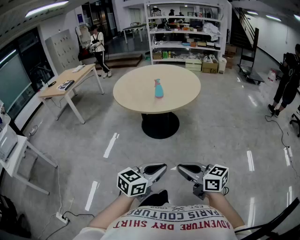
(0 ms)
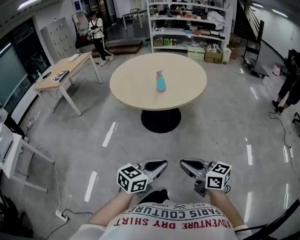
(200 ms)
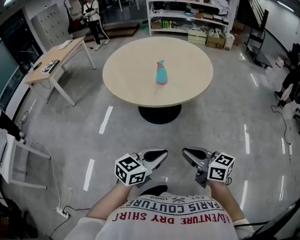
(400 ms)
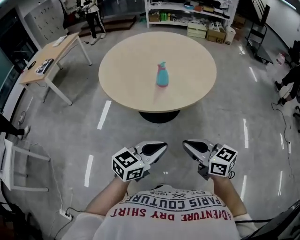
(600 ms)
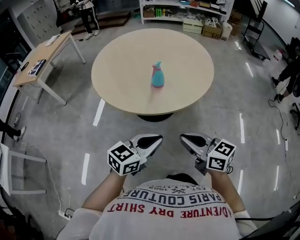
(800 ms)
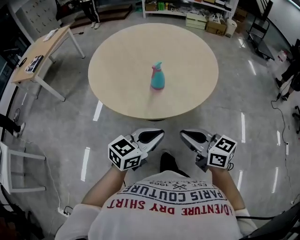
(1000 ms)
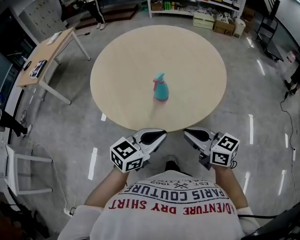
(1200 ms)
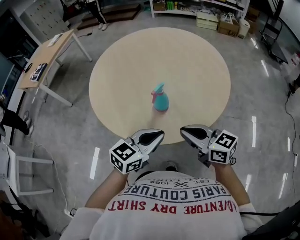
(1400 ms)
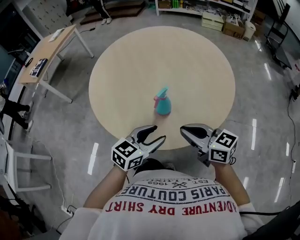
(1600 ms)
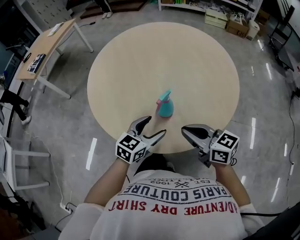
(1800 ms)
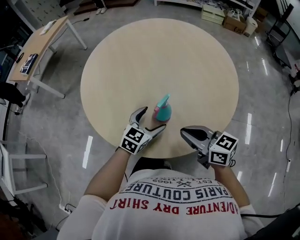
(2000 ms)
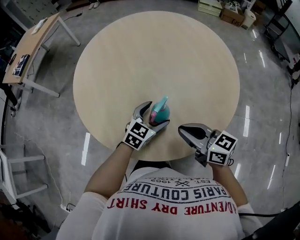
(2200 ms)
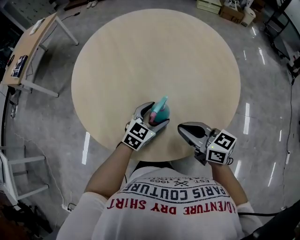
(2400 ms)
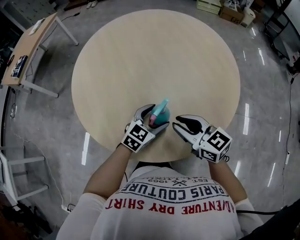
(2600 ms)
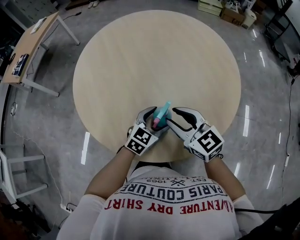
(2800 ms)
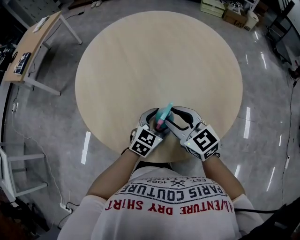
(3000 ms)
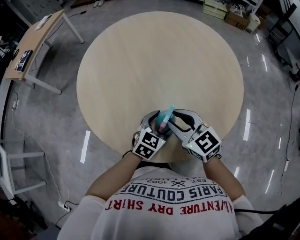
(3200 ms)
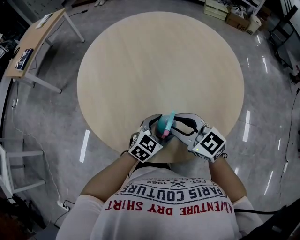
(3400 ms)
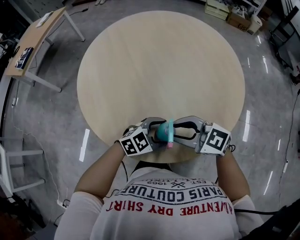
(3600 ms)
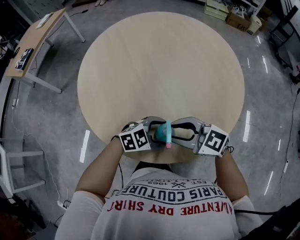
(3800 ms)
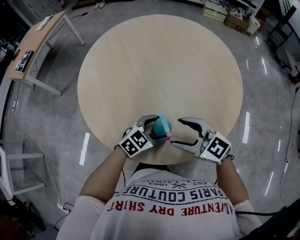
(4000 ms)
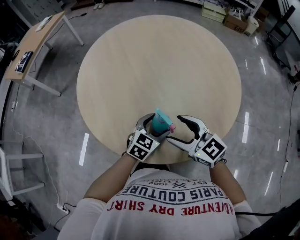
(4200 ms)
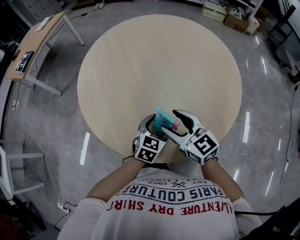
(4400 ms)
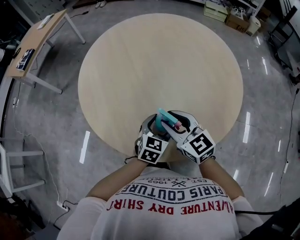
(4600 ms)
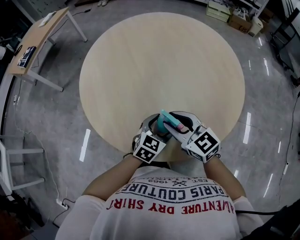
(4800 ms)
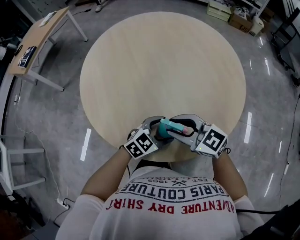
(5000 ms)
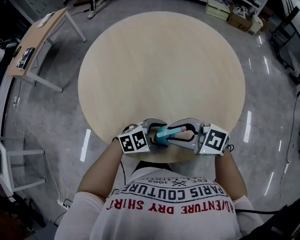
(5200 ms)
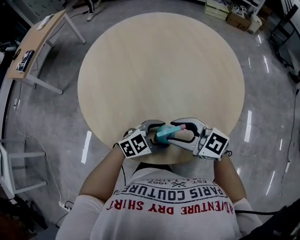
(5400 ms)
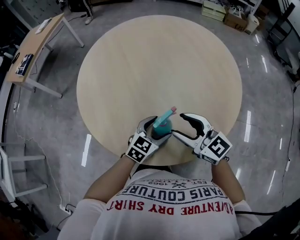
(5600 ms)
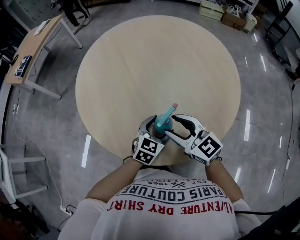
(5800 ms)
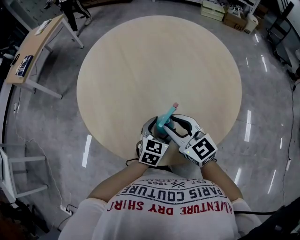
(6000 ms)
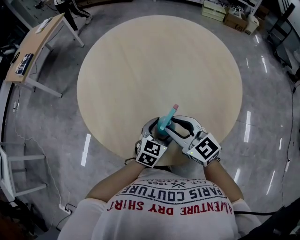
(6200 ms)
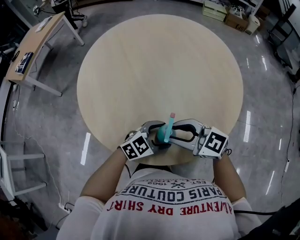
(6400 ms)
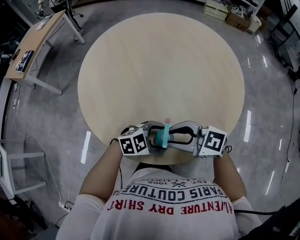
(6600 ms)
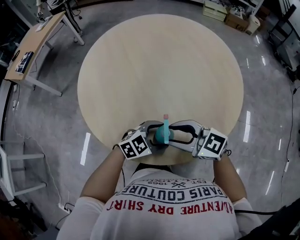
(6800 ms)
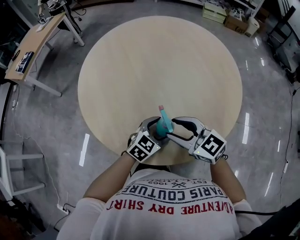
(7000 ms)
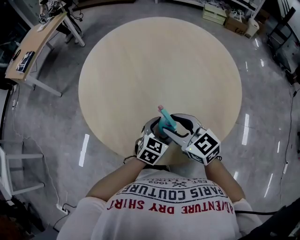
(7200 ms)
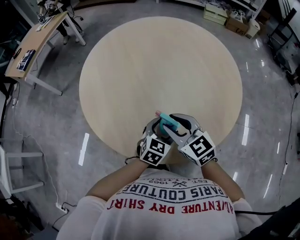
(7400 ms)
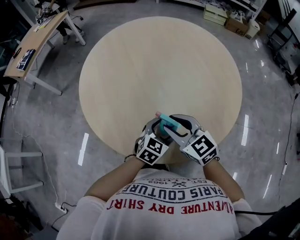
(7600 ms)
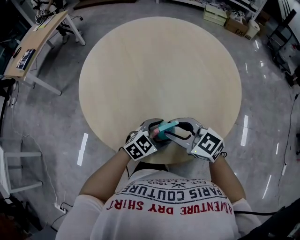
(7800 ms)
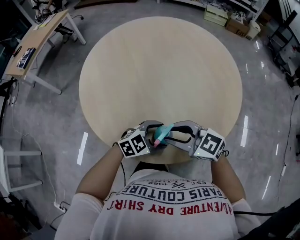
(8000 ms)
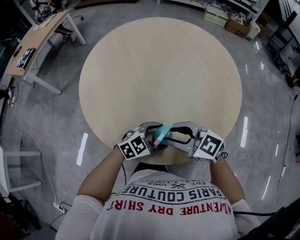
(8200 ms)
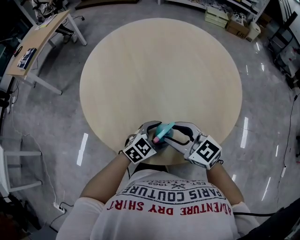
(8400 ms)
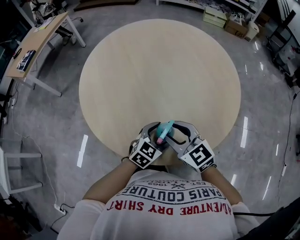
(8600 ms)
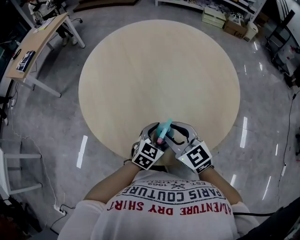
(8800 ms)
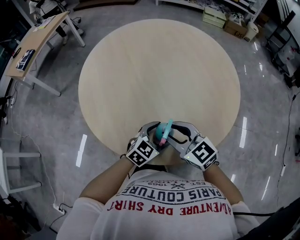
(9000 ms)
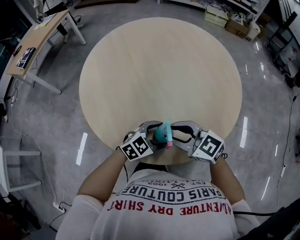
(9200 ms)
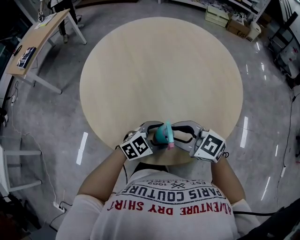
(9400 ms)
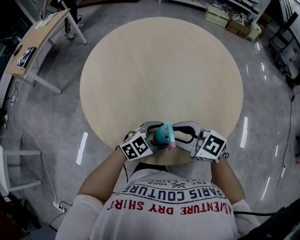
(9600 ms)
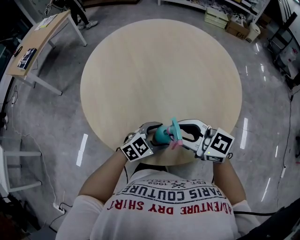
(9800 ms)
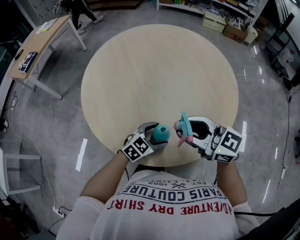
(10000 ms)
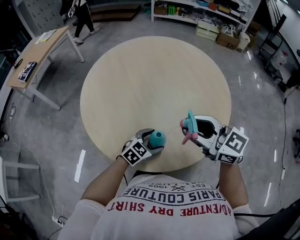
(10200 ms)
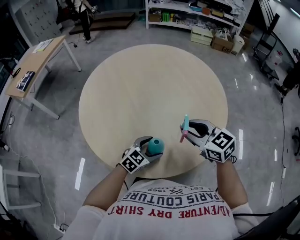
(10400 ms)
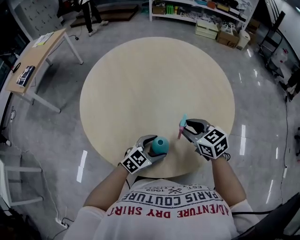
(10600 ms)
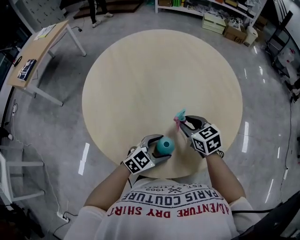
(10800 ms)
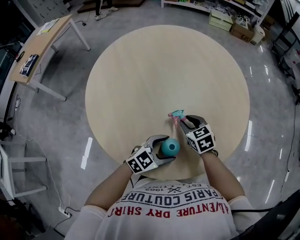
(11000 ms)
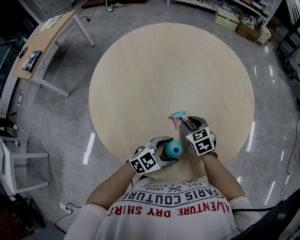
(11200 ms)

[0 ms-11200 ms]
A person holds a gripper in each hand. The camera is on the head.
0 ms to 1600 ms: The pair of grippers is taken forward, about 70 cm. The left gripper opens up.
1600 ms to 3200 ms: The right gripper shifts about 15 cm forward and to the left, rotates approximately 20 degrees, and opens its fingers, while the left gripper goes about 15 cm forward and downward, and opens its fingers.
3200 ms to 4800 ms: The right gripper opens, then closes once more.
4800 ms to 6400 ms: The right gripper changes its angle by about 20 degrees. The left gripper swivels approximately 30 degrees.
9600 ms to 11200 ms: The right gripper changes place by some 20 cm, and turns by some 50 degrees.

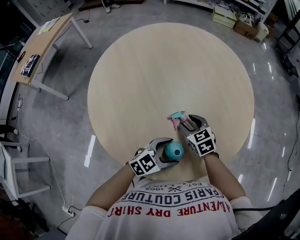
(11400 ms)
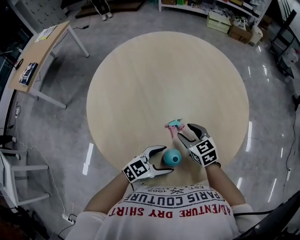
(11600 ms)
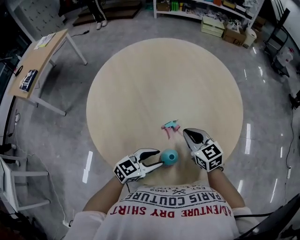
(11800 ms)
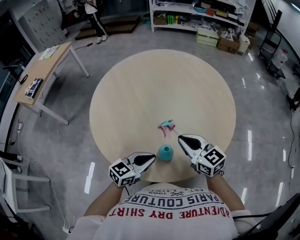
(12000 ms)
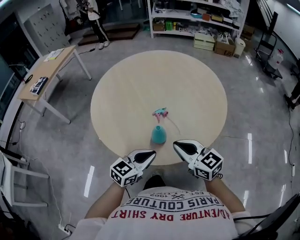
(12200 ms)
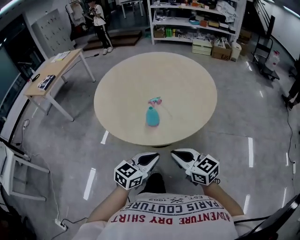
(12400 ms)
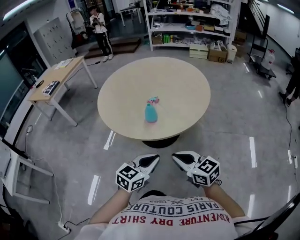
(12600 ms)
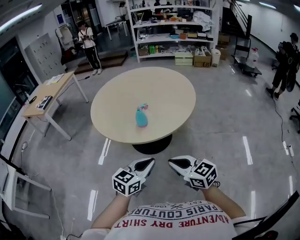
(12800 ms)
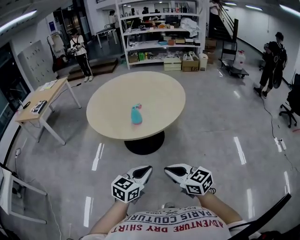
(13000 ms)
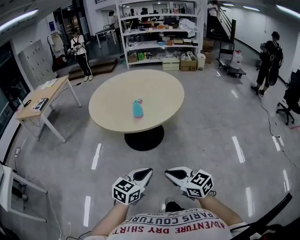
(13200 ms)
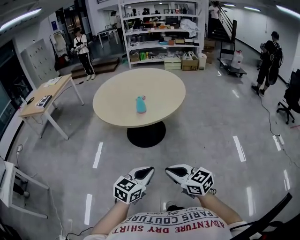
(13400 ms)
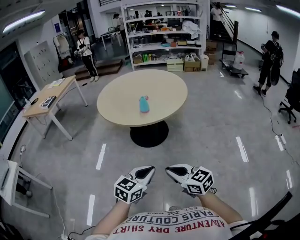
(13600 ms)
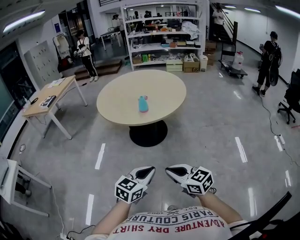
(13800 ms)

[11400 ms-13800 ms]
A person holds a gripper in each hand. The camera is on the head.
11400 ms to 12600 ms: The left gripper heads backward and upward, covering approximately 35 cm, changes its angle by about 20 degrees, and closes up. Meanwhile the right gripper is displaced backward by about 50 cm, turns by some 30 degrees, and closes its fingers.
12600 ms to 13800 ms: The grippers both shift backward by approximately 30 cm.

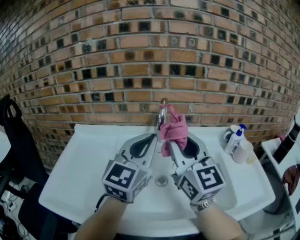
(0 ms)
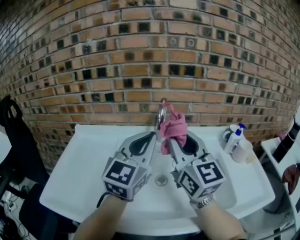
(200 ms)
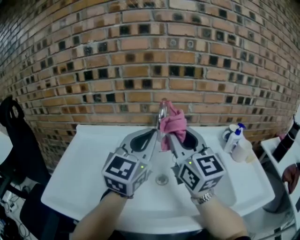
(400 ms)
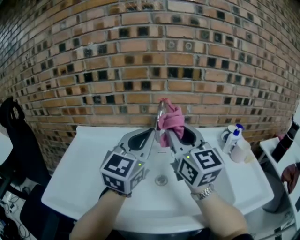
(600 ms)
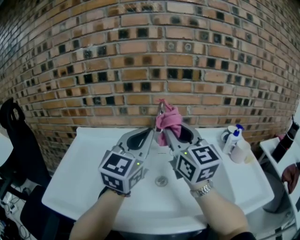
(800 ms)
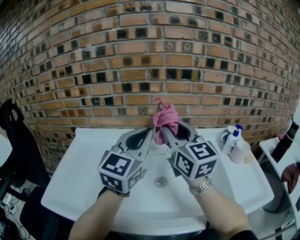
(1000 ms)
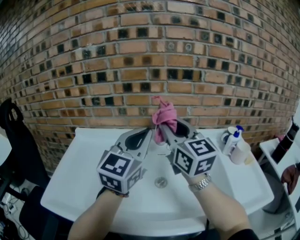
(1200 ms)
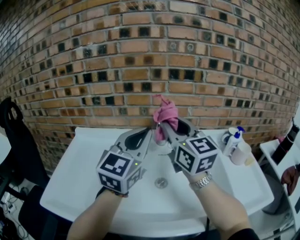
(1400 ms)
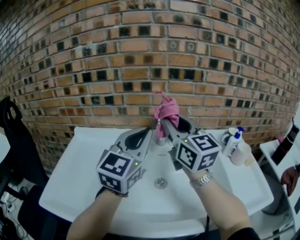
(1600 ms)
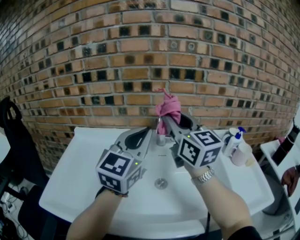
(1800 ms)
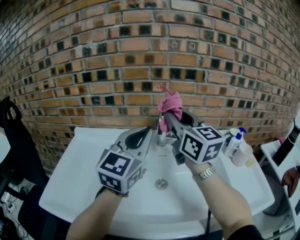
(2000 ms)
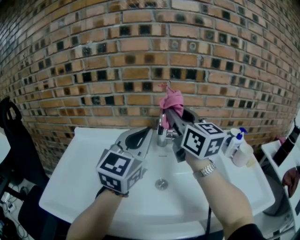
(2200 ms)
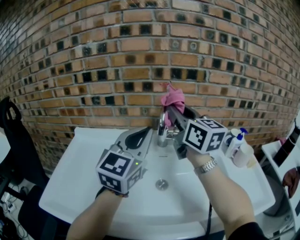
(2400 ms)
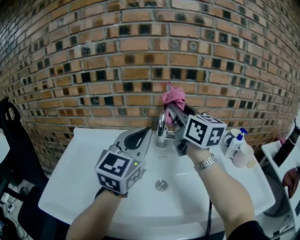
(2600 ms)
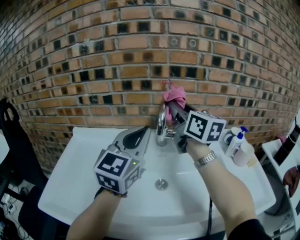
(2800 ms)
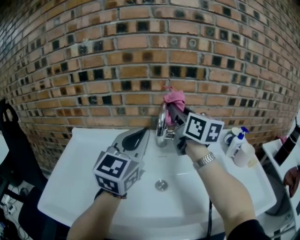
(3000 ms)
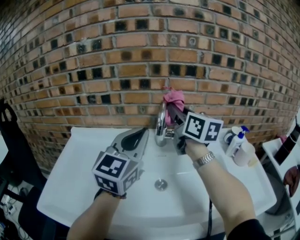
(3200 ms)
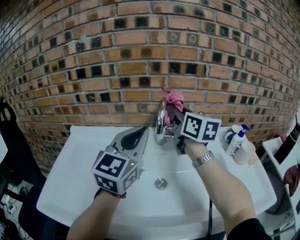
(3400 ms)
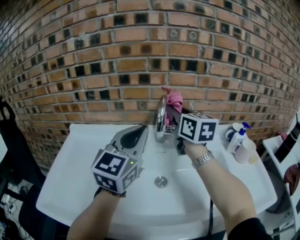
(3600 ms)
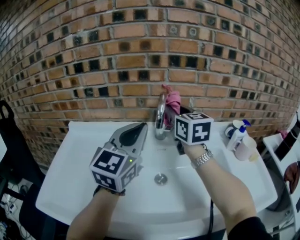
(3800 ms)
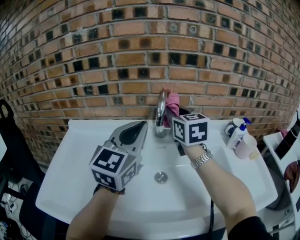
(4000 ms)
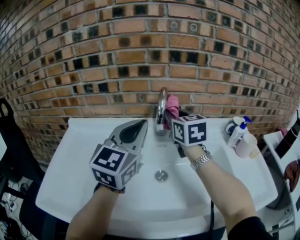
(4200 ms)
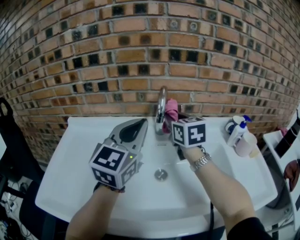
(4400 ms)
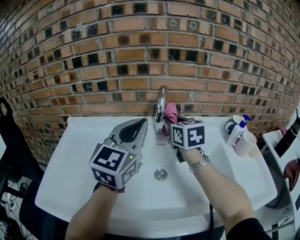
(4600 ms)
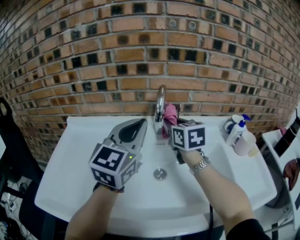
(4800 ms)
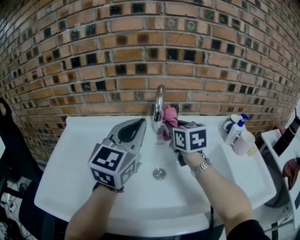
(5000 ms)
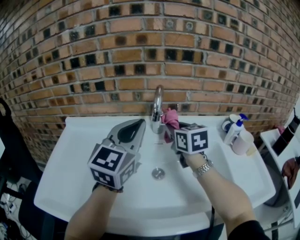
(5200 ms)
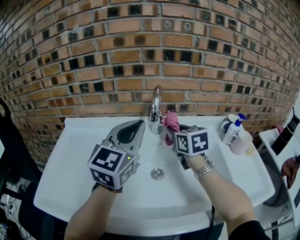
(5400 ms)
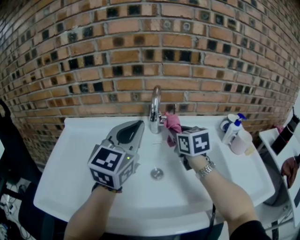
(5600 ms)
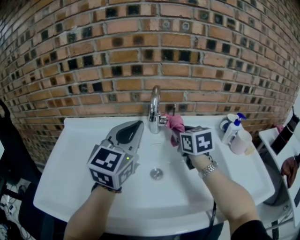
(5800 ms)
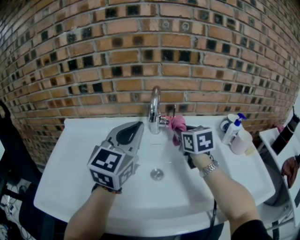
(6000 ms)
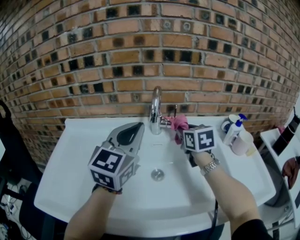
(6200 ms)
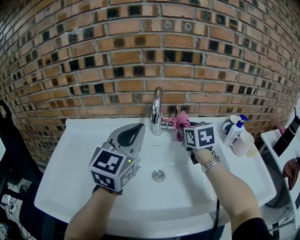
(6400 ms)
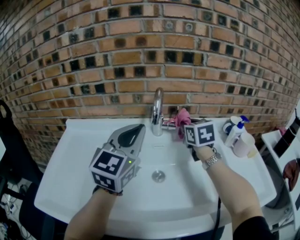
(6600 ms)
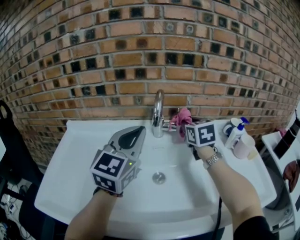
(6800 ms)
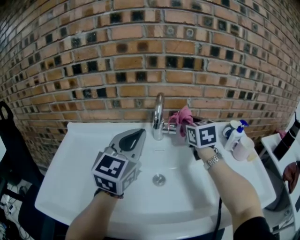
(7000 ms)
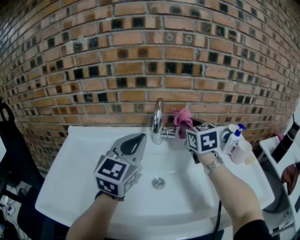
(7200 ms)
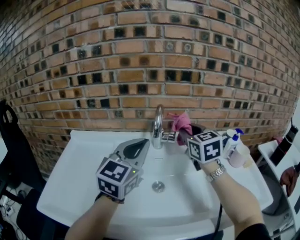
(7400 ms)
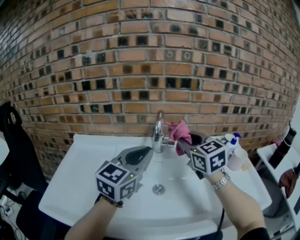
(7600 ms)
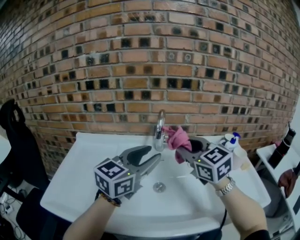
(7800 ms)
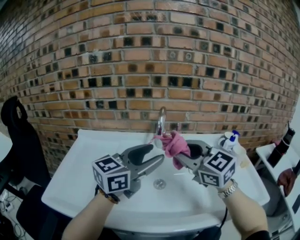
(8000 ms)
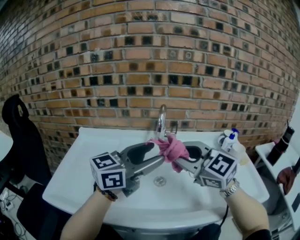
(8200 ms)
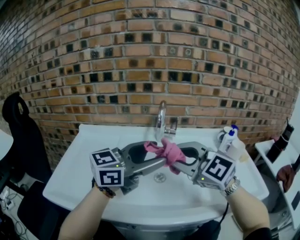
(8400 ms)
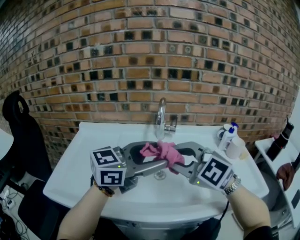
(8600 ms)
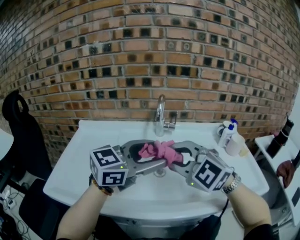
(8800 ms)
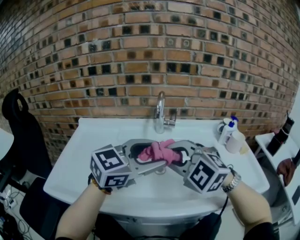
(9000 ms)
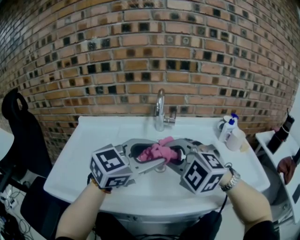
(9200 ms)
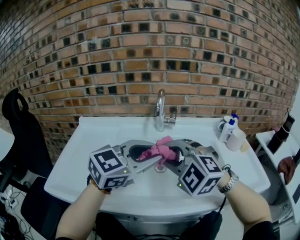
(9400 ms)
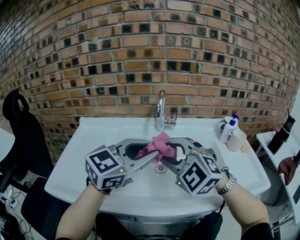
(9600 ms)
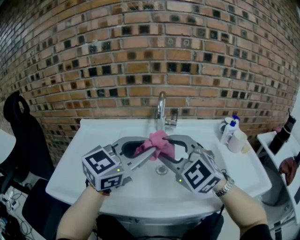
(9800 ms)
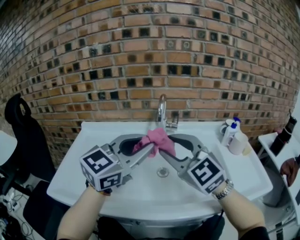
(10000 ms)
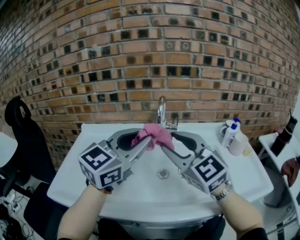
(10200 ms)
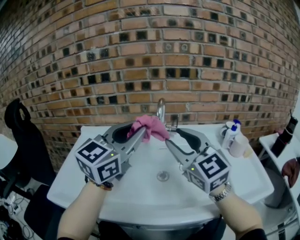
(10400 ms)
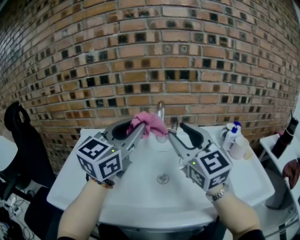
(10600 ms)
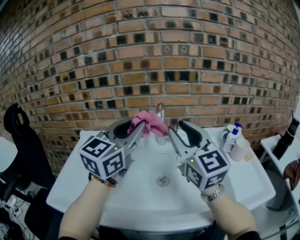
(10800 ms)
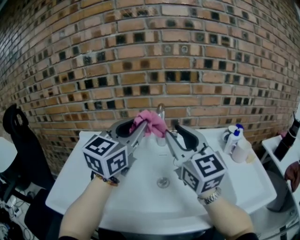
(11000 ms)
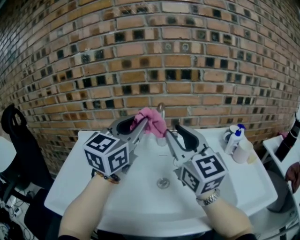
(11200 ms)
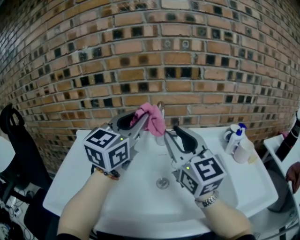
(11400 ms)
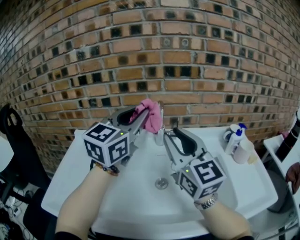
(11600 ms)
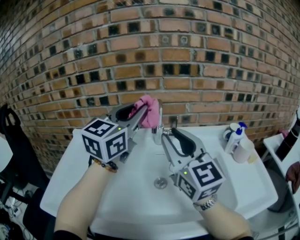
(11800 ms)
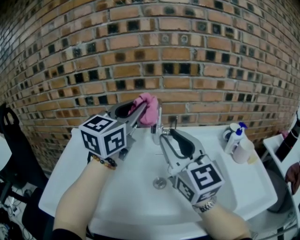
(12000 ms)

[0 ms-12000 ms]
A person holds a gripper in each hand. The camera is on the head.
0 ms to 1600 ms: The right gripper goes some 5 cm forward.
1600 ms to 3000 ms: The right gripper shifts some 10 cm forward.
3000 ms to 4400 ms: The right gripper is displaced downward by roughly 10 cm, and swivels about 30 degrees.
4400 ms to 6000 ms: The right gripper goes about 10 cm to the right and downward.
6000 ms to 7600 ms: The right gripper is displaced upward and backward by roughly 15 cm, and swivels some 20 degrees.
7600 ms to 9000 ms: The left gripper heads backward, covering some 10 cm, changes its angle by about 30 degrees, and opens its fingers; the right gripper is displaced backward by approximately 20 cm, and twists approximately 40 degrees counterclockwise, seen from behind.
9000 ms to 10400 ms: The right gripper shifts roughly 10 cm upward and forward, and changes its angle by about 40 degrees; the left gripper heads upward and to the left, covering about 10 cm, changes its angle by about 30 degrees, and closes its fingers.
10400 ms to 12000 ms: The left gripper shifts roughly 15 cm forward.
